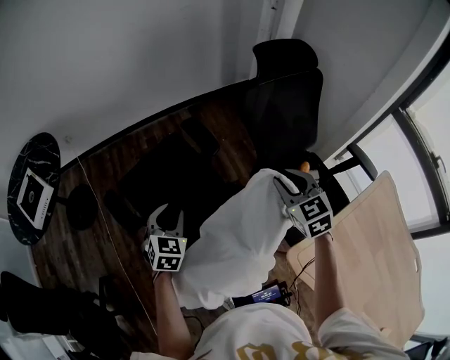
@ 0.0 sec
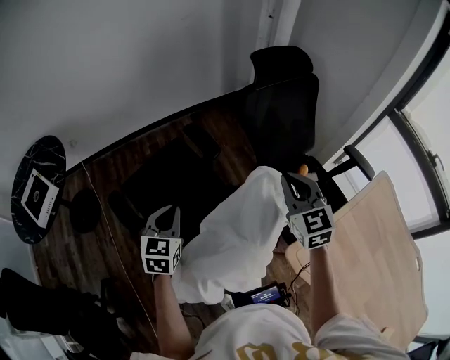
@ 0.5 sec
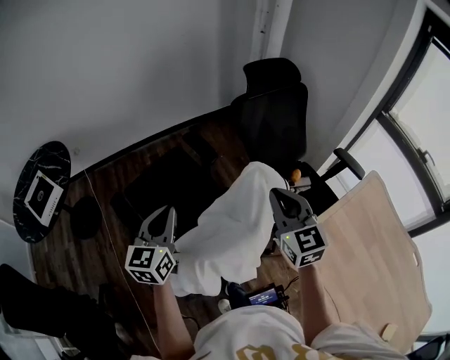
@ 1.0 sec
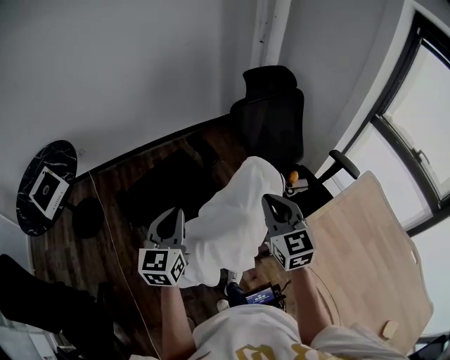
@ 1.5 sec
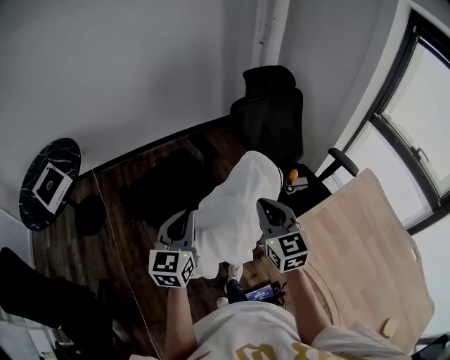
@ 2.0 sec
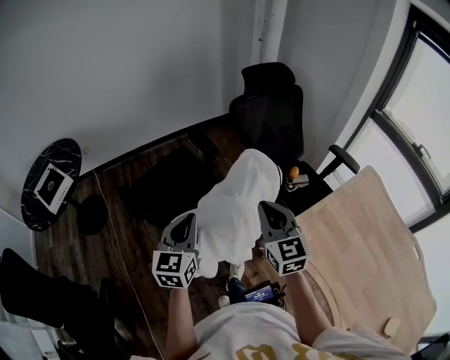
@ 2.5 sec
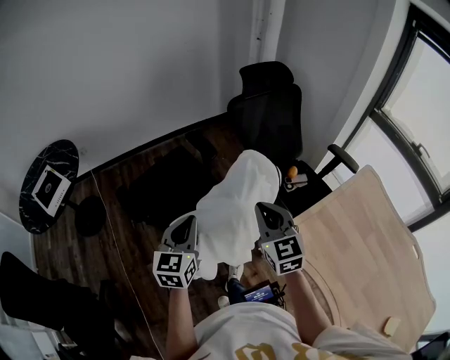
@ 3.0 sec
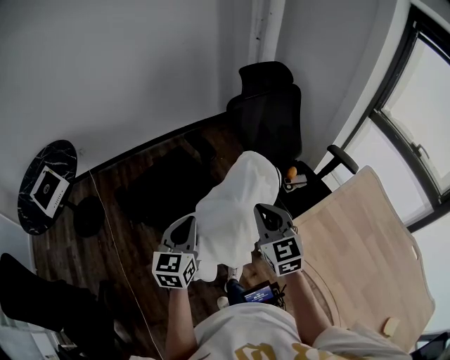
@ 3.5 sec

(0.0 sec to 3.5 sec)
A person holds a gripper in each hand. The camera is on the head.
0.0 sec - 2.0 sec: The right gripper travels backward by approximately 25 cm, swivels some 20 degrees, and closes its fingers. Meanwhile the left gripper shifts roughly 25 cm backward and upward, changes its angle by roughly 30 degrees, and closes up.
2.0 sec - 3.5 sec: The grippers make only small movements.

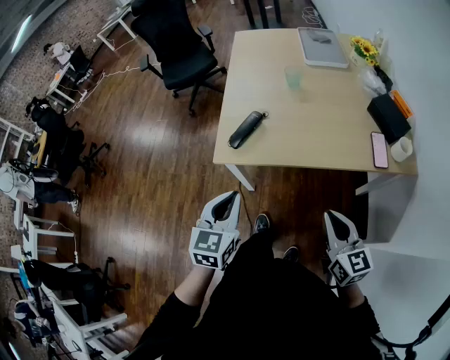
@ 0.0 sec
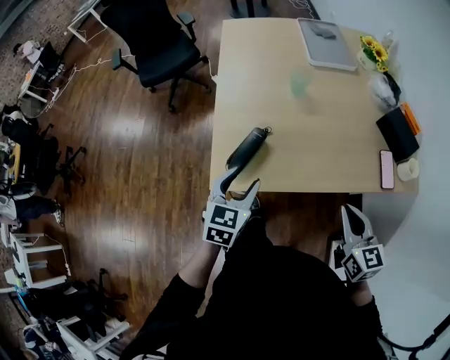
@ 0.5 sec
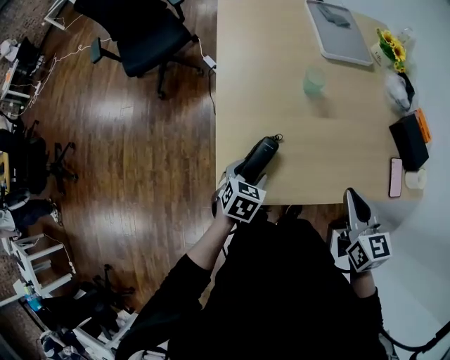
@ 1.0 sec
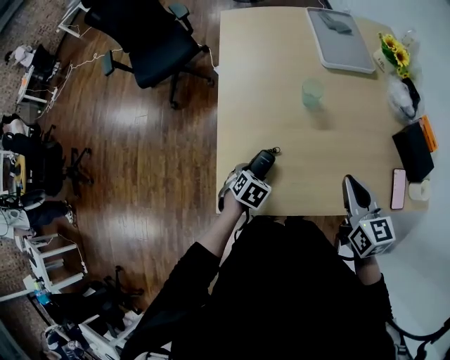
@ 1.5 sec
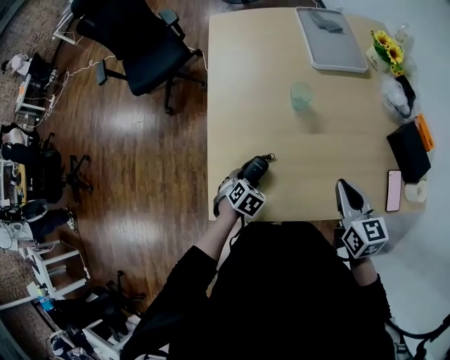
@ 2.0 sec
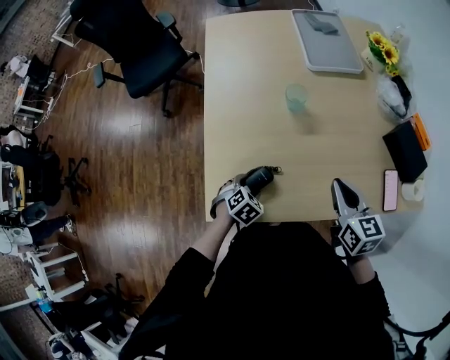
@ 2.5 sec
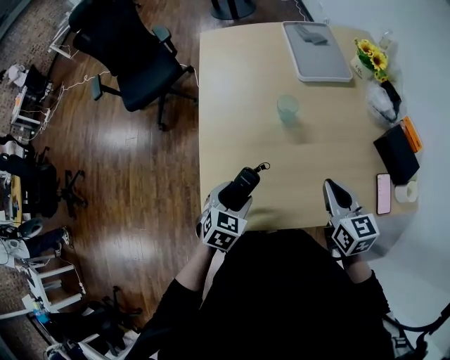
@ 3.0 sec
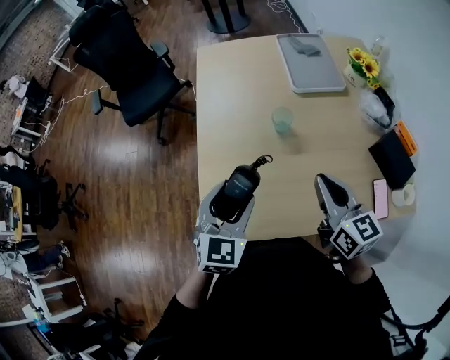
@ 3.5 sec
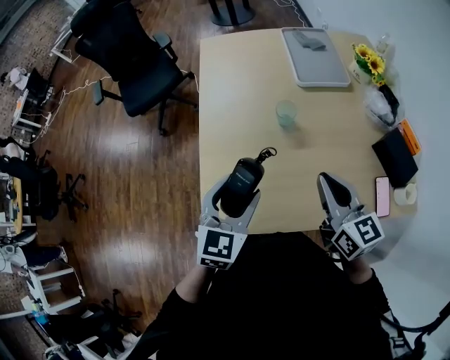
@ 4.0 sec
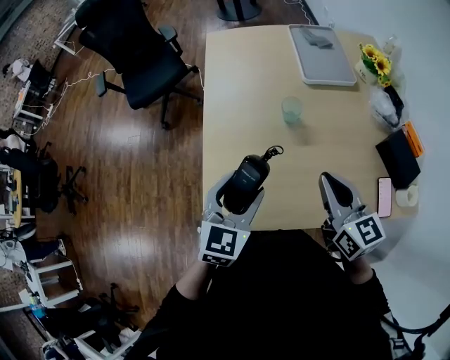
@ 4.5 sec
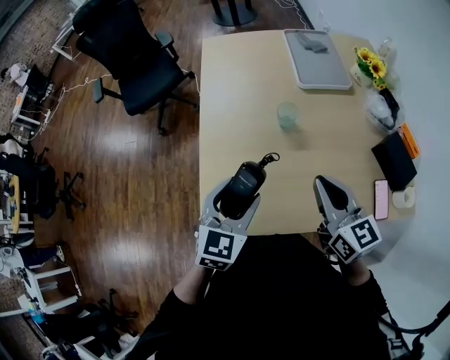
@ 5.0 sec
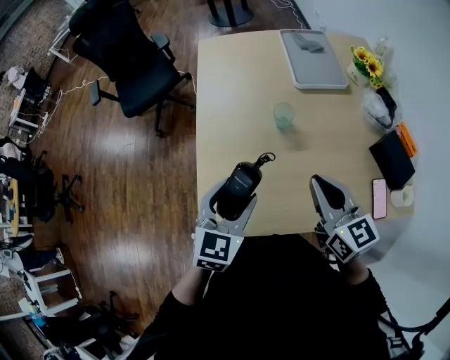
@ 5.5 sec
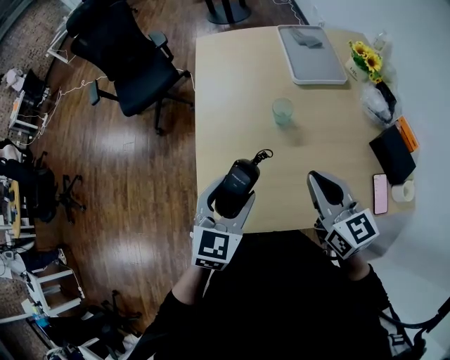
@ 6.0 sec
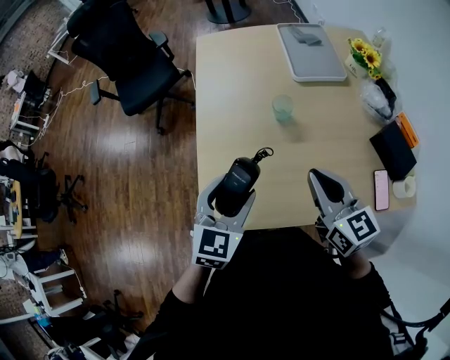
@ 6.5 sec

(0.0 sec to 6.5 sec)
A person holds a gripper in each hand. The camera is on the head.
0.0 sec - 2.0 sec: The left gripper moves forward and downward, roughly 40 cm, tilts its fingers about 50 degrees downward, and opens up; the right gripper travels forward by approximately 35 cm.
2.0 sec - 4.5 sec: The left gripper goes roughly 25 cm upward, and points its fingers roughly 50 degrees further upward, while the right gripper shifts some 10 cm upward.
4.5 sec - 6.5 sec: There are only small adjustments of the grippers.

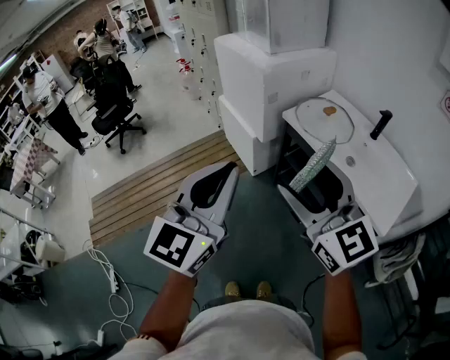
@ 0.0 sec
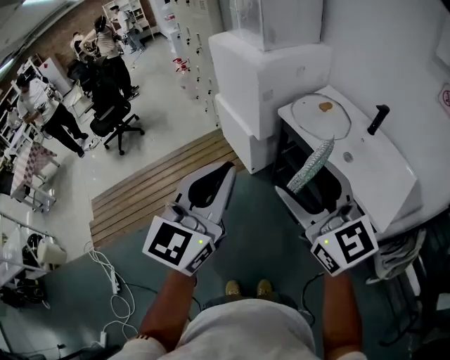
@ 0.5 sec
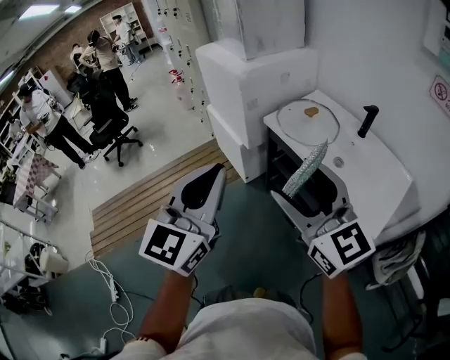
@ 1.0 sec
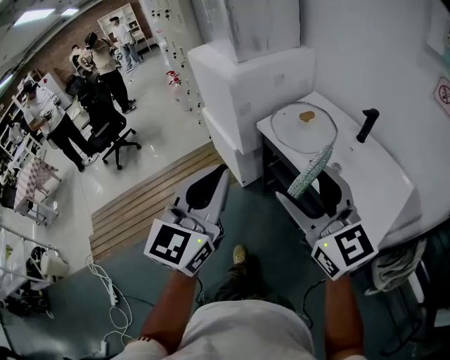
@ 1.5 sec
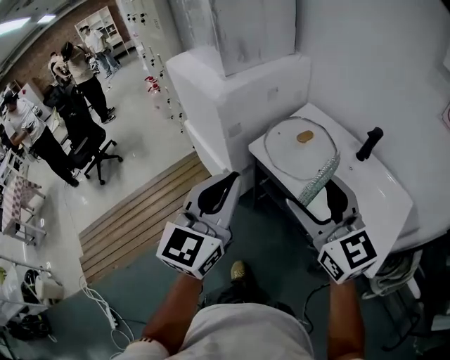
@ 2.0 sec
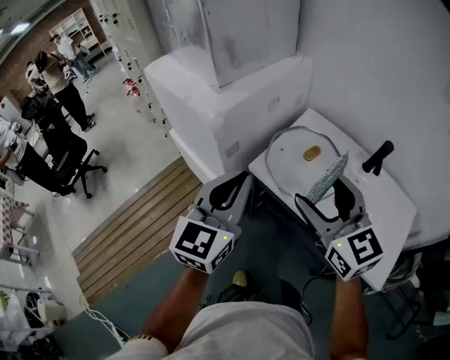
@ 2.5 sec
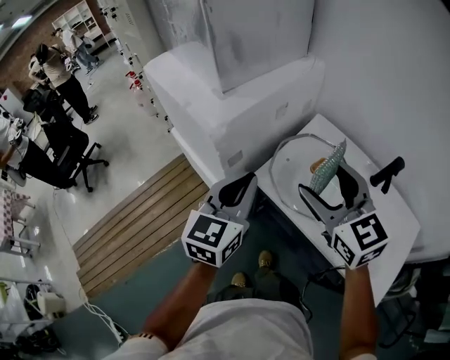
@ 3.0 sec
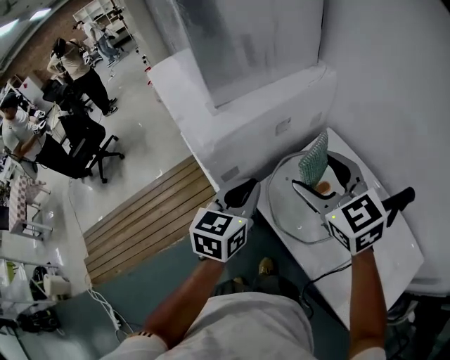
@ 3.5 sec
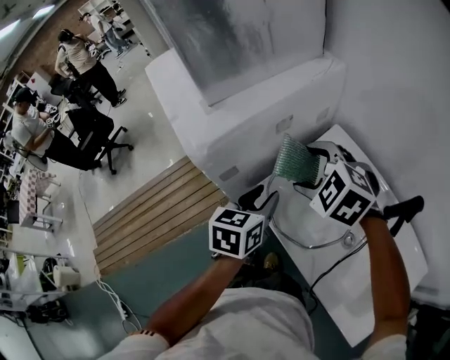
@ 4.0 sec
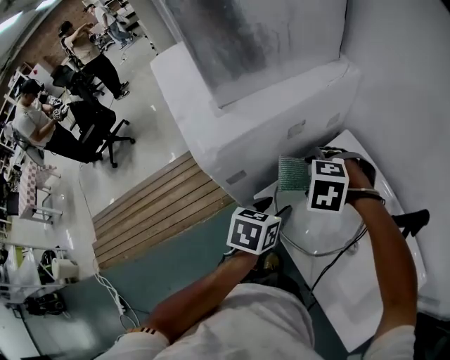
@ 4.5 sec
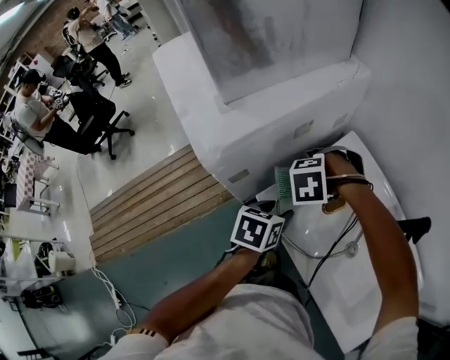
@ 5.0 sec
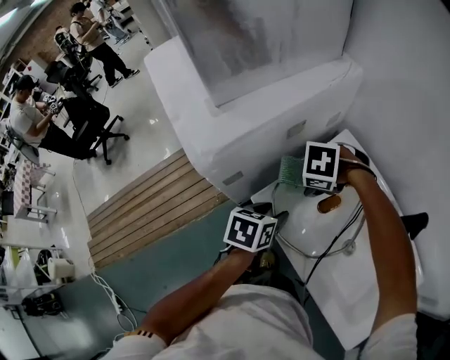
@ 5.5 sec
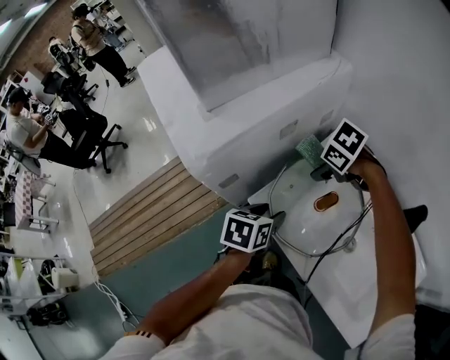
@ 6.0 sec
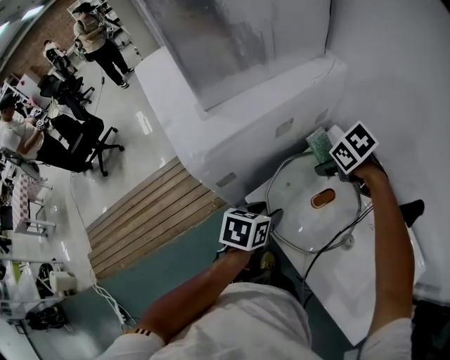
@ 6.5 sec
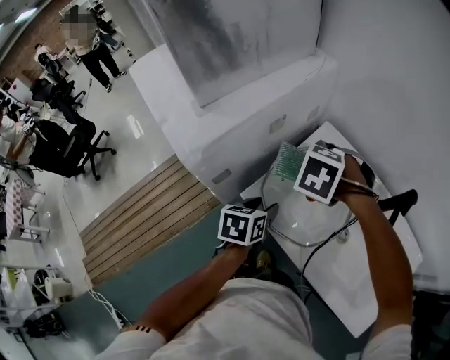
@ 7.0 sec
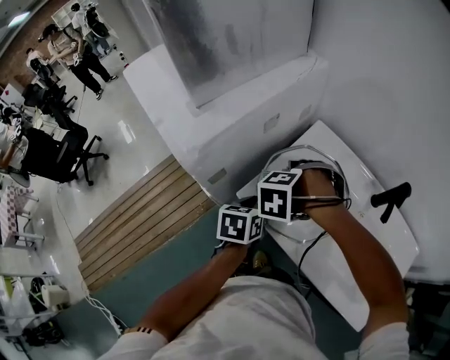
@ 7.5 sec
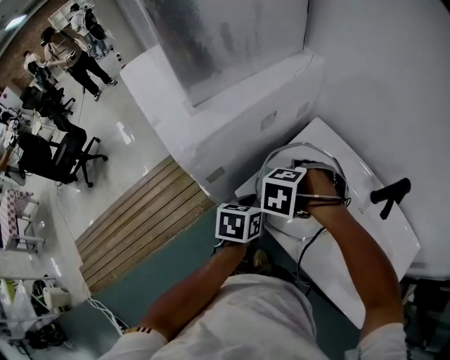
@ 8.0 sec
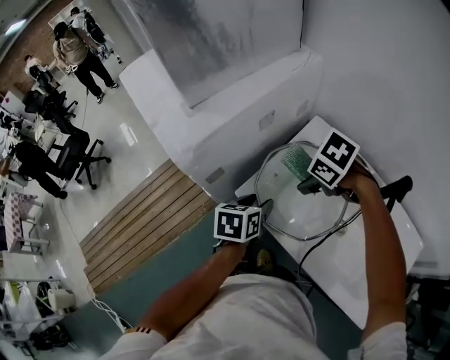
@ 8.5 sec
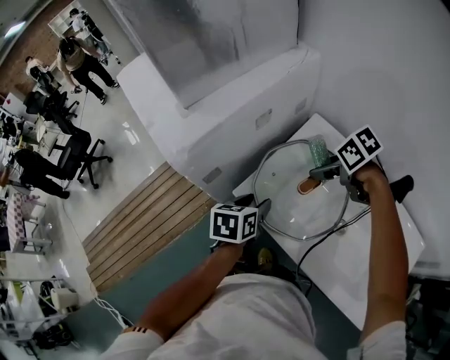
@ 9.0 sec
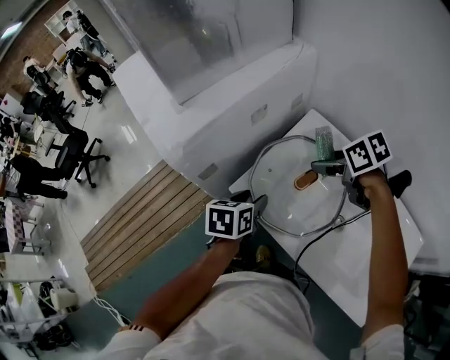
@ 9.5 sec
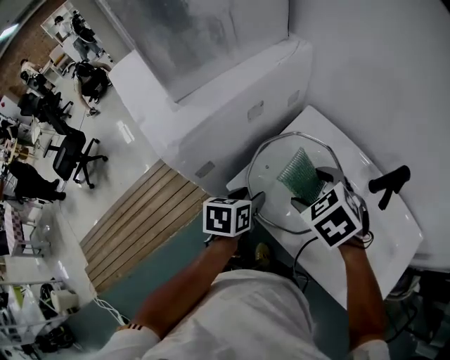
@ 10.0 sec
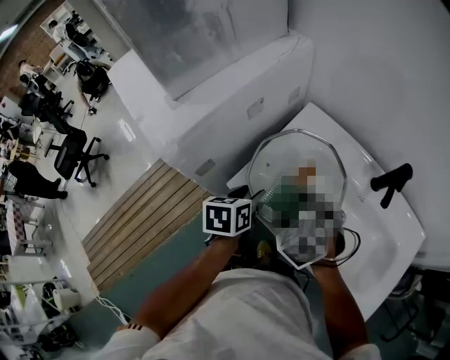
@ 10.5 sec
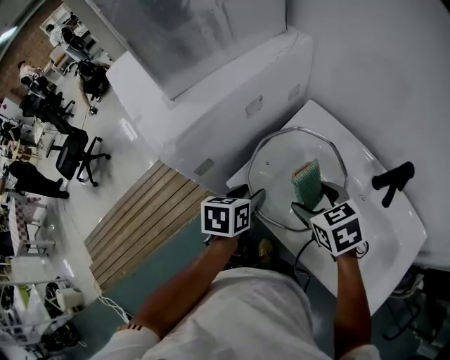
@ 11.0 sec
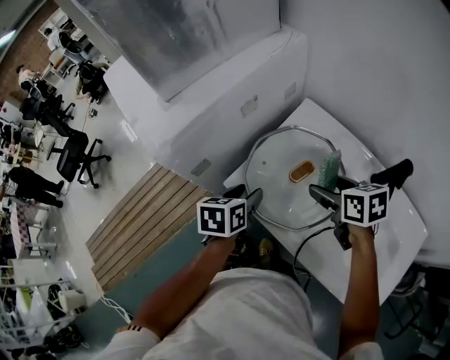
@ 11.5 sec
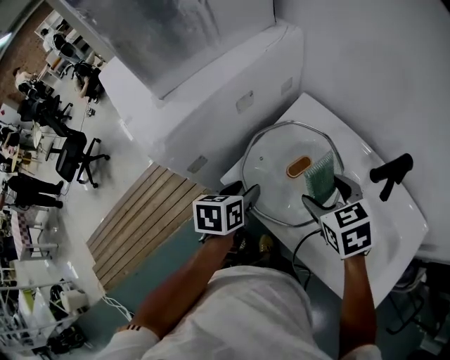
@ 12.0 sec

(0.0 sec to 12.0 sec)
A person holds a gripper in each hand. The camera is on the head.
0.0 sec - 2.0 sec: The two grippers go roughly 25 cm forward and to the right.
2.0 sec - 4.0 sec: The left gripper heads forward and downward, covering some 35 cm, tips its fingers downward by roughly 30 degrees, and opens. Meanwhile the right gripper moves forward, approximately 35 cm, and tilts its fingers approximately 50 degrees downward.
4.0 sec - 6.0 sec: Both grippers travel together downward, some 10 cm. The right gripper turns by about 40 degrees. Meanwhile the left gripper rotates approximately 20 degrees.
6.0 sec - 8.0 sec: The right gripper ends up approximately 15 cm from where it was, and turns by approximately 40 degrees.
8.0 sec - 10.0 sec: The right gripper shifts roughly 5 cm upward, and turns by roughly 50 degrees.
10.0 sec - 12.0 sec: The right gripper is displaced to the right by approximately 5 cm, and changes its angle by roughly 20 degrees.

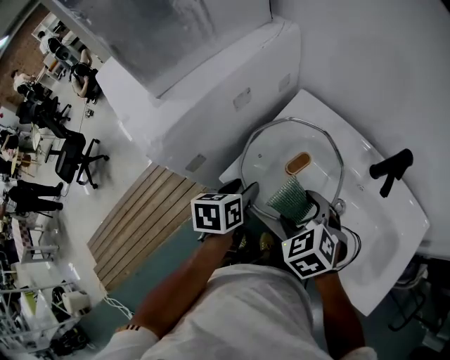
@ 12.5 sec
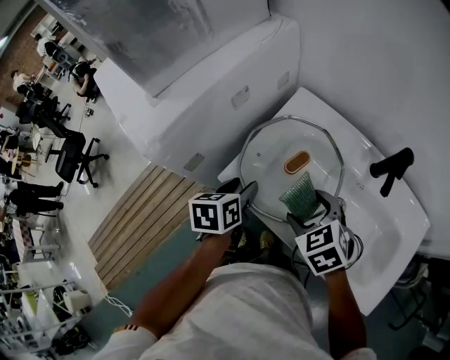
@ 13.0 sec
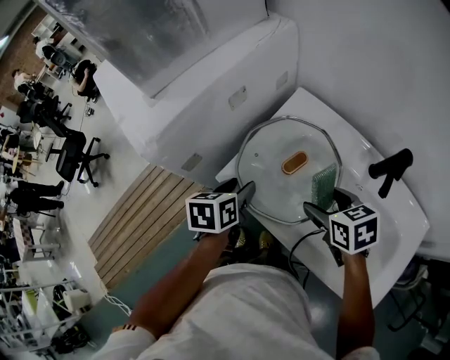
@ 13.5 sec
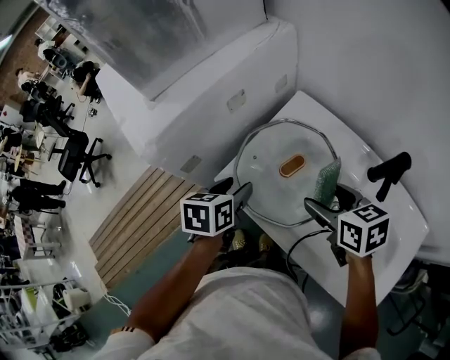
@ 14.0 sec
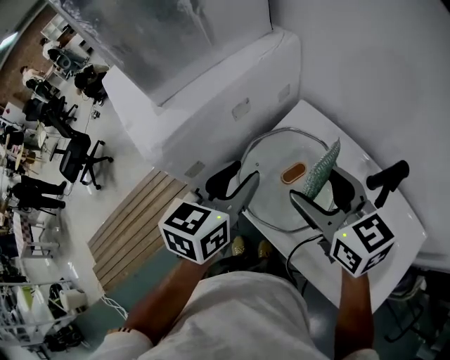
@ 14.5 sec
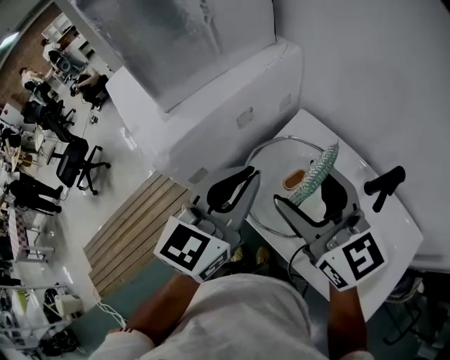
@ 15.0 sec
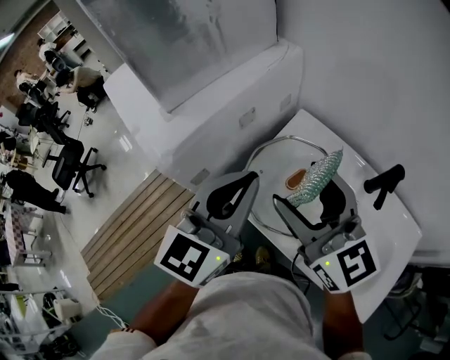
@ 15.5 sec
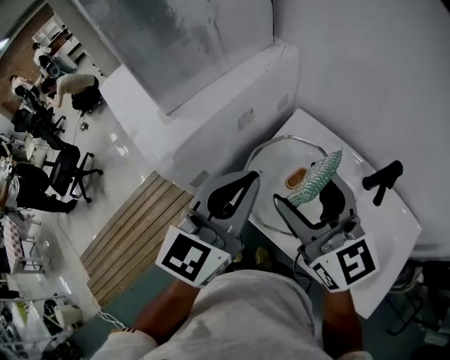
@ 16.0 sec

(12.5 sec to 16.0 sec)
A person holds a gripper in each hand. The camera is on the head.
12.5 sec - 14.5 sec: The grippers both shift upward by approximately 15 cm. The left gripper changes its angle by roughly 30 degrees. Meanwhile the right gripper tips its fingers upward by about 30 degrees.
14.5 sec - 16.0 sec: The right gripper heads upward and to the left, covering approximately 10 cm, and turns by about 20 degrees, while the left gripper goes approximately 10 cm upward, changes its angle by some 20 degrees, and closes.
